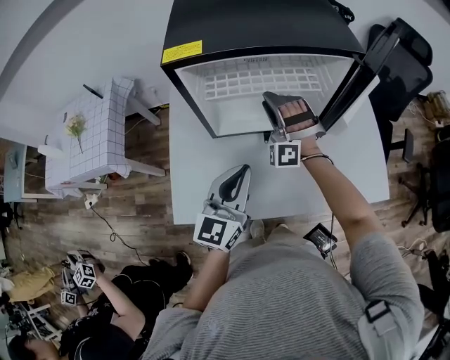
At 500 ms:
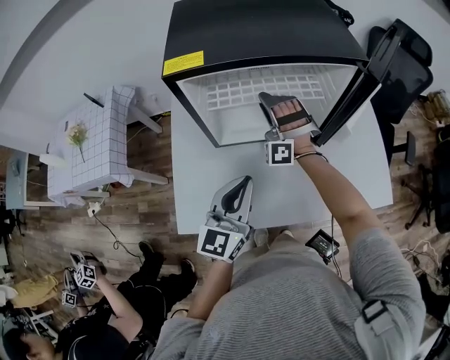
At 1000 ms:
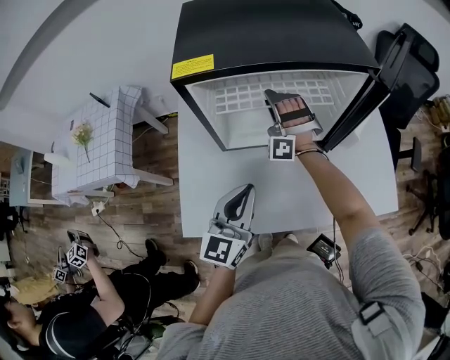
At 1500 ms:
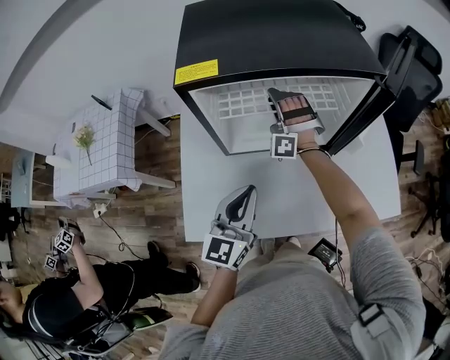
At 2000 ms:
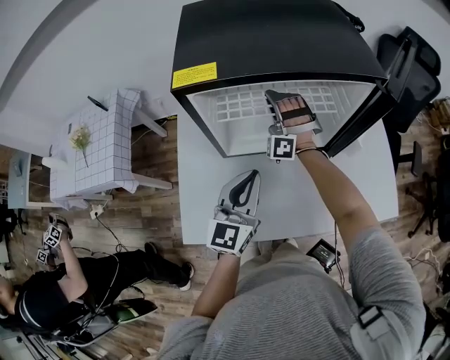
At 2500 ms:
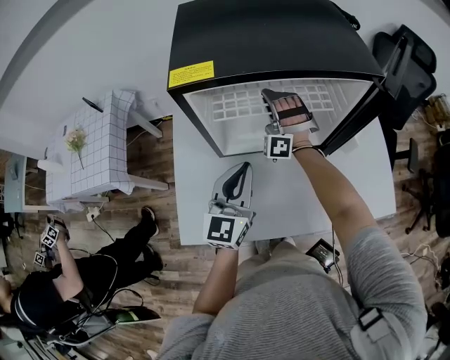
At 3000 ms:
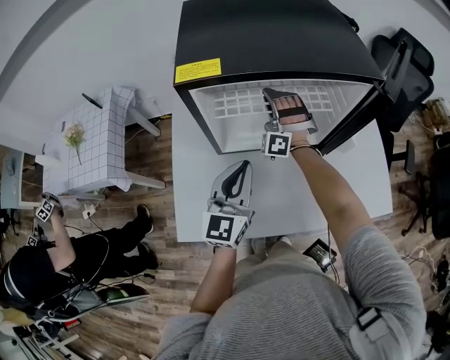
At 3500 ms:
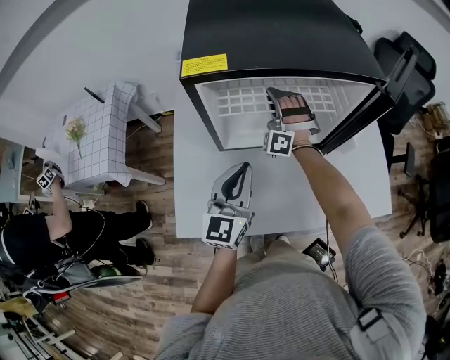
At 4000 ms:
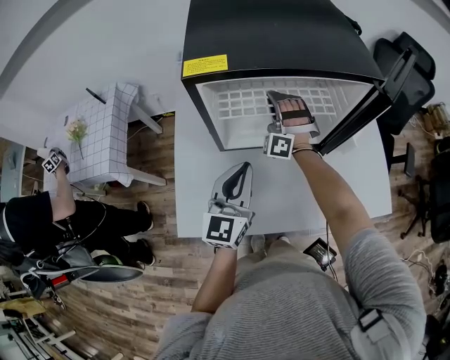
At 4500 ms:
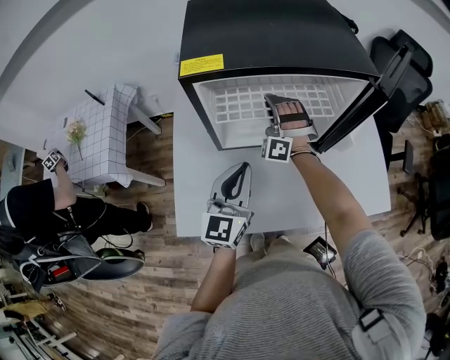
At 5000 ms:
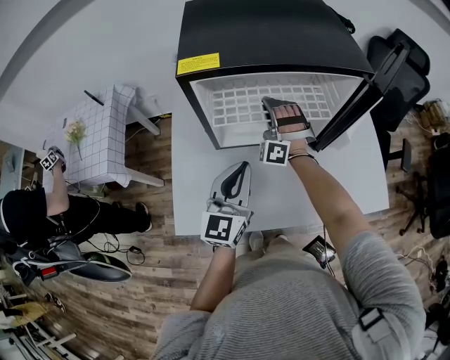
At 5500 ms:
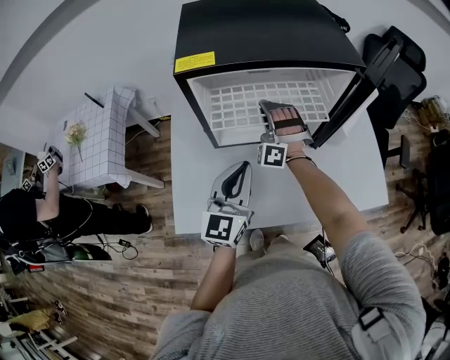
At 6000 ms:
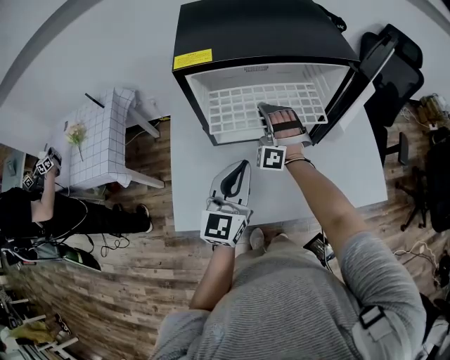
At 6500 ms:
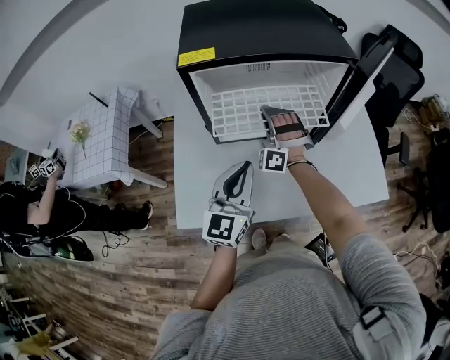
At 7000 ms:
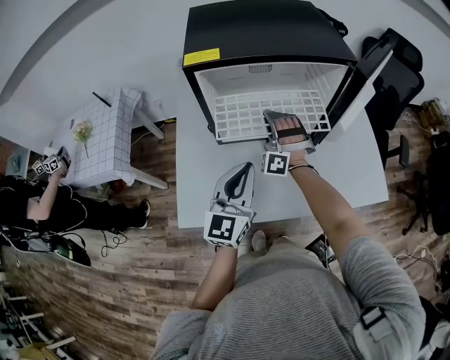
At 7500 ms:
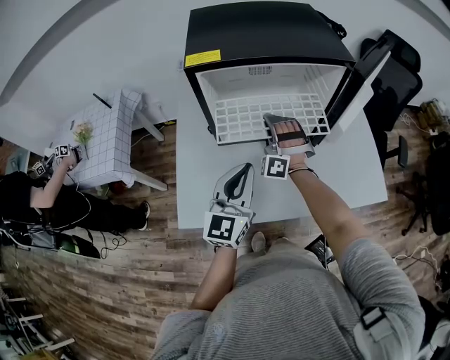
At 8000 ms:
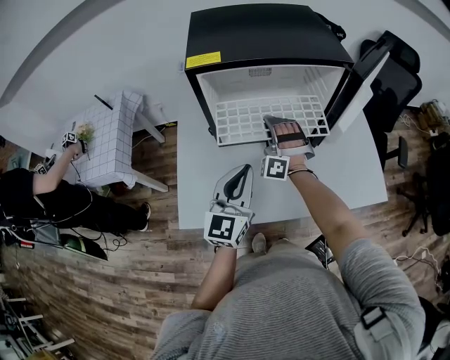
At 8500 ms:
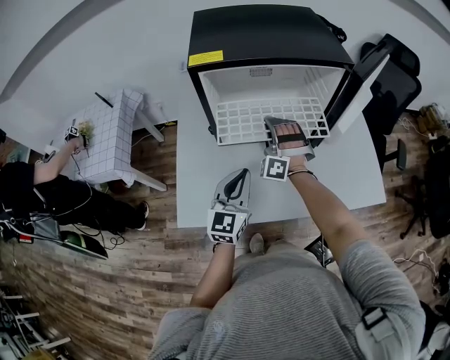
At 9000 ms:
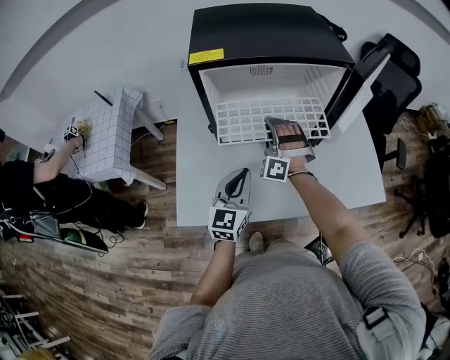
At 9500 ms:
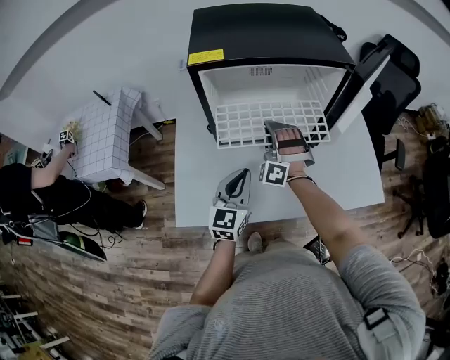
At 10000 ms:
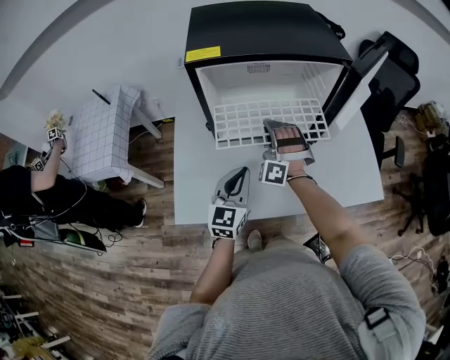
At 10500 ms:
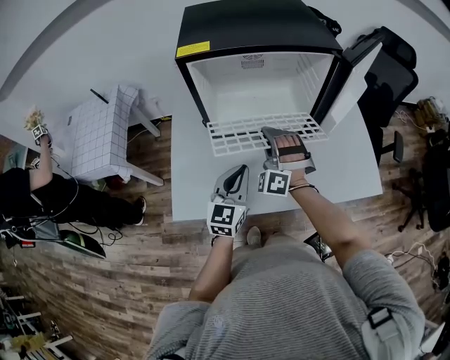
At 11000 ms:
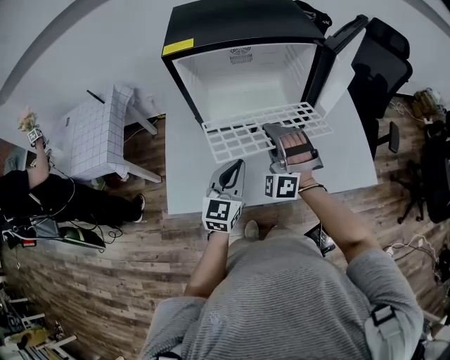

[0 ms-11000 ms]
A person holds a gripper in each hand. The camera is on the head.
0 ms to 2000 ms: The right gripper moves forward, approximately 10 cm, and closes its fingers. Meanwhile the left gripper travels forward by about 5 cm.
2000 ms to 3500 ms: There are only small adjustments of the grippers.
3500 ms to 5500 ms: The right gripper moves backward, approximately 5 cm.
5500 ms to 7500 ms: The right gripper travels backward by some 5 cm.
7500 ms to 9000 ms: The left gripper shifts about 10 cm downward.
9000 ms to 11000 ms: The right gripper is displaced backward, to the right and upward by about 15 cm. Meanwhile the left gripper ends up some 5 cm from where it was.

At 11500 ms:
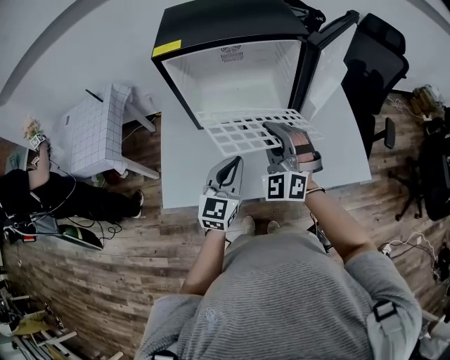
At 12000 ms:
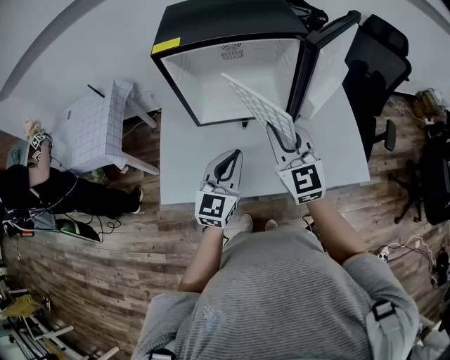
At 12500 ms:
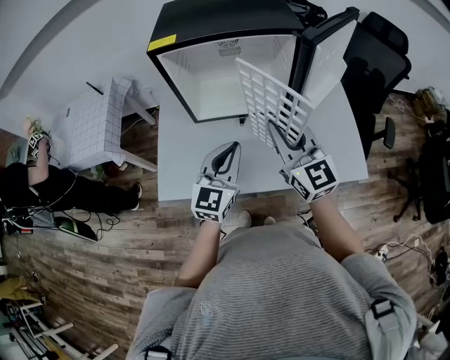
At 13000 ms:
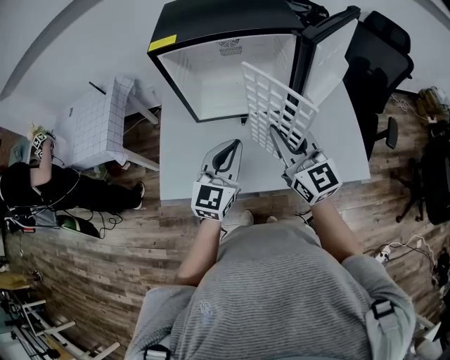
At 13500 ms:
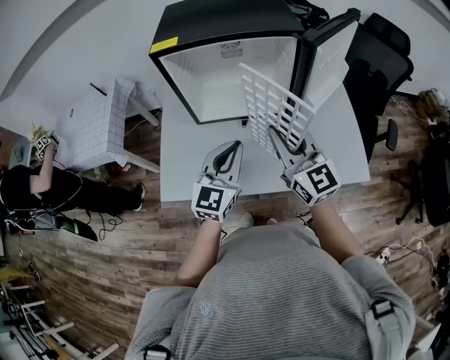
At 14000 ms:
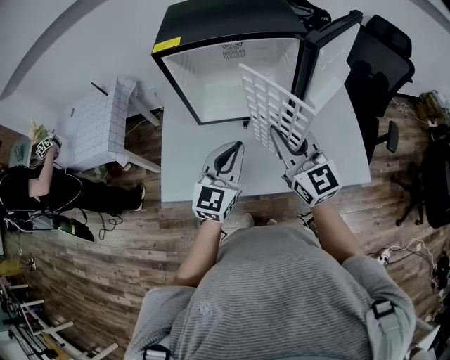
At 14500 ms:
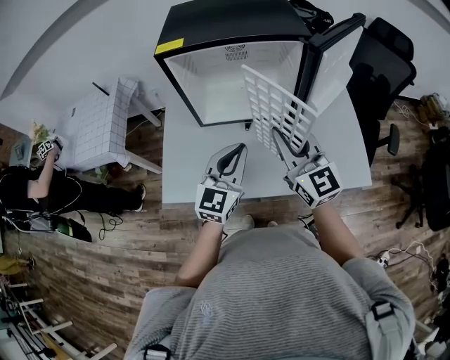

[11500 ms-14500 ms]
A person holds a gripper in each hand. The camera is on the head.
11500 ms to 13000 ms: The left gripper shifts some 5 cm upward, while the right gripper shifts by roughly 5 cm, and twists some 50 degrees clockwise, seen from behind.
13000 ms to 14500 ms: The grippers stay close to where they were, moving slightly.

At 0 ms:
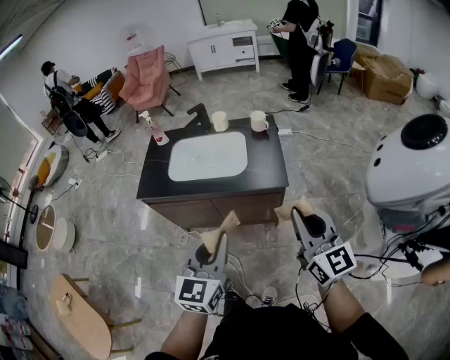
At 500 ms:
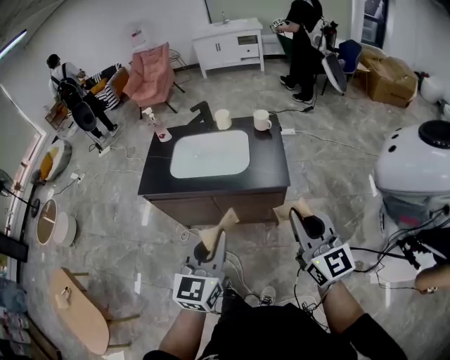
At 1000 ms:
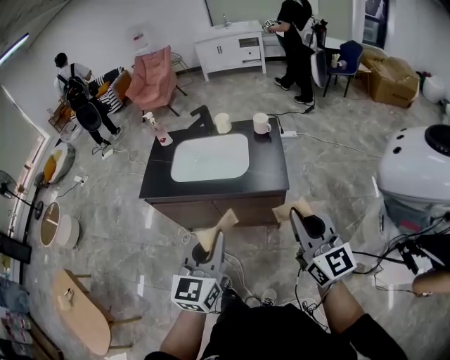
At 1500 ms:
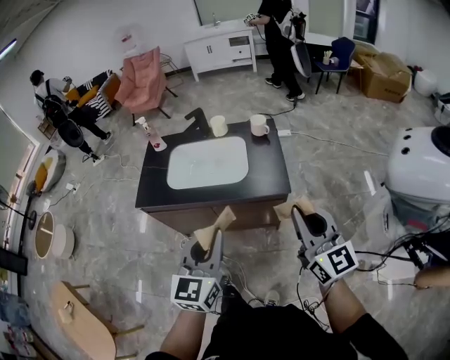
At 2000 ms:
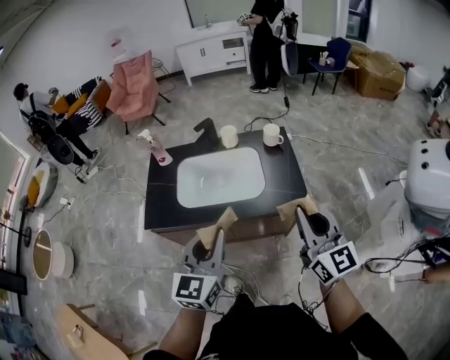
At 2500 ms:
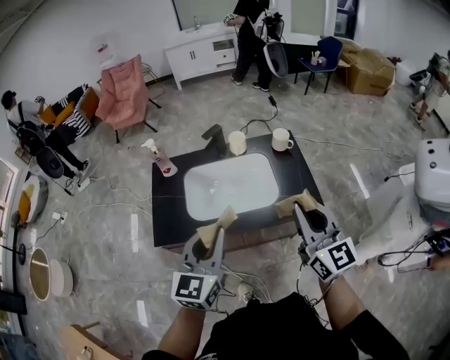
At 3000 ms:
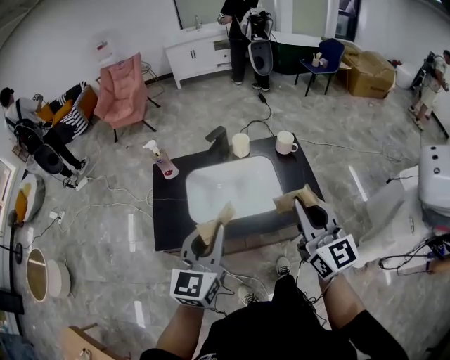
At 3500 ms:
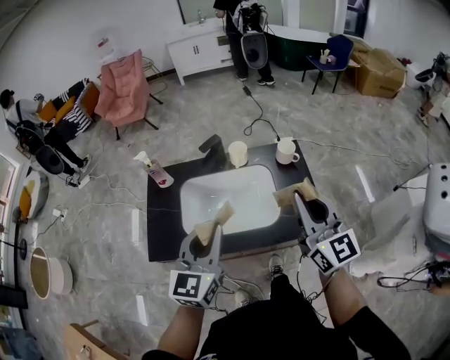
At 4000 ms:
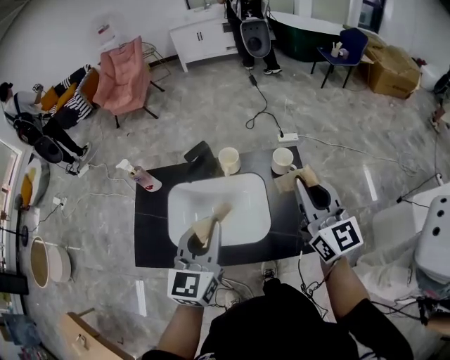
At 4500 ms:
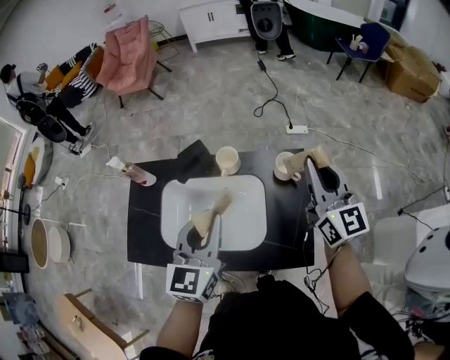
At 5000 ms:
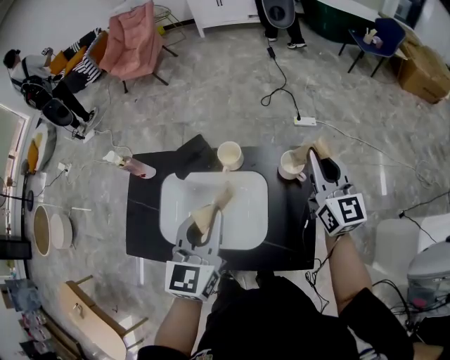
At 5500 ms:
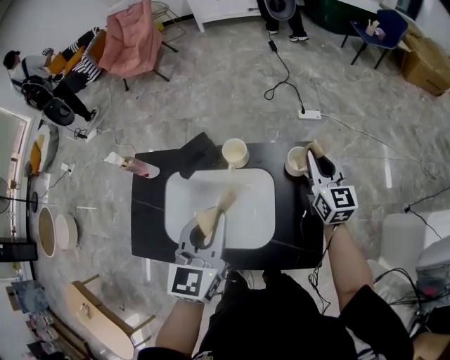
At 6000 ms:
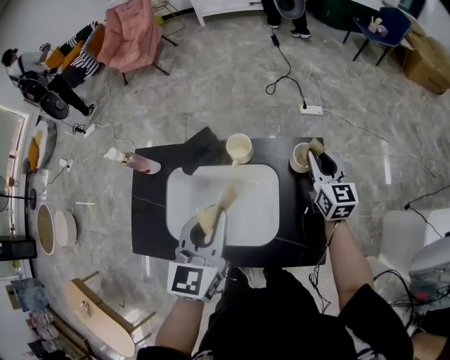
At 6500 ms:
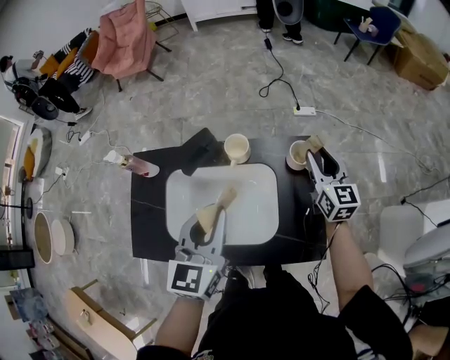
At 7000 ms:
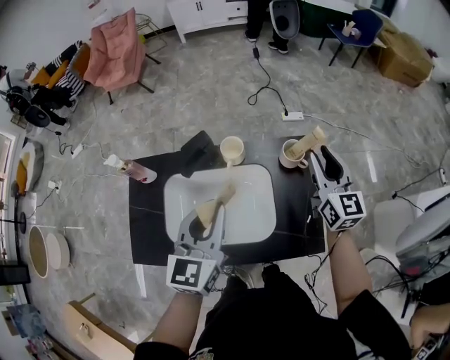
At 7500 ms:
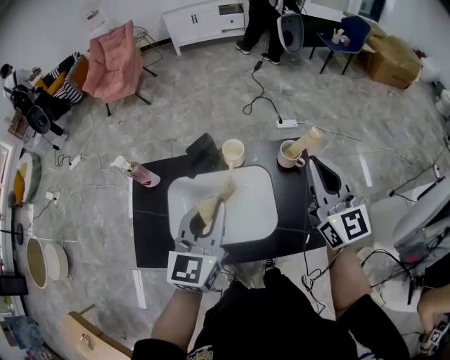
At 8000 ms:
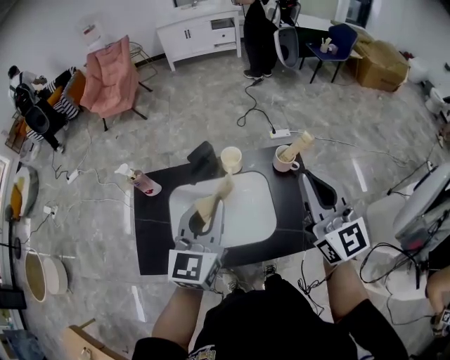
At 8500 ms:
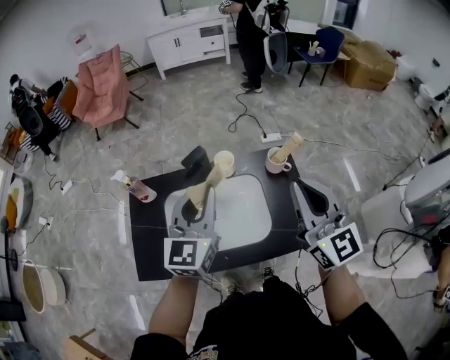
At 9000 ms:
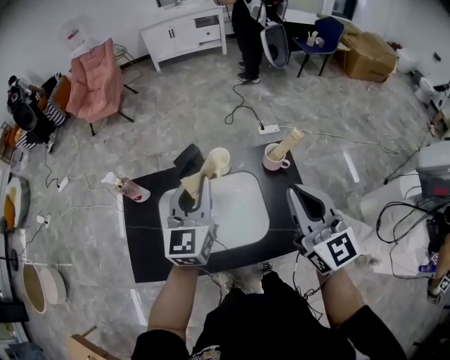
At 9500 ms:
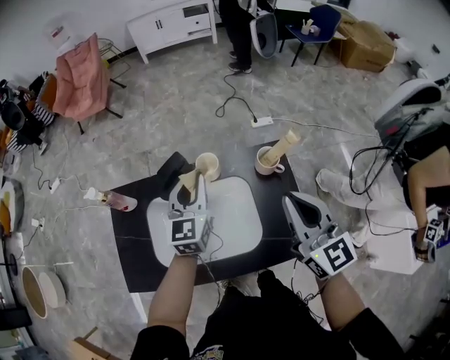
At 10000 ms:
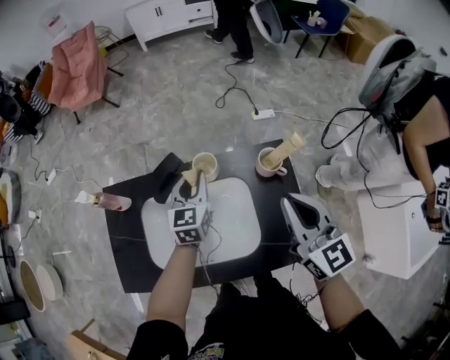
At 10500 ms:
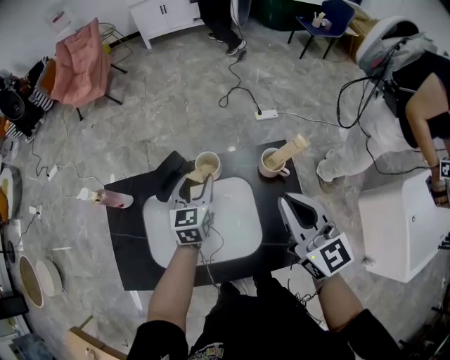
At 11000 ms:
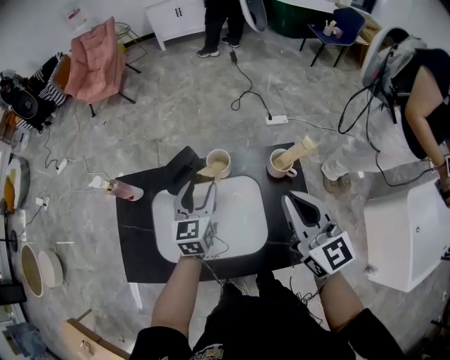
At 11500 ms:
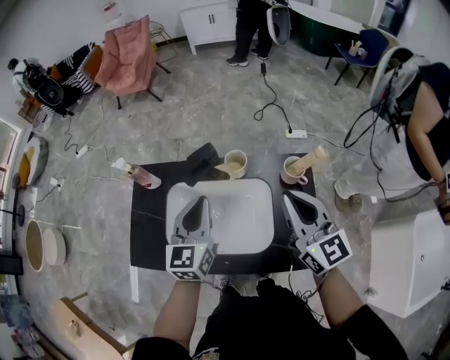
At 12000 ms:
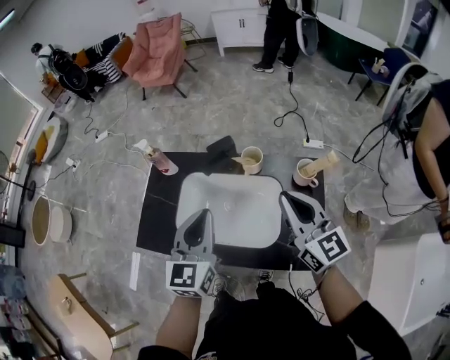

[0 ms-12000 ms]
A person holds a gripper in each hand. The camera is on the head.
0 ms to 2000 ms: The two grippers go roughly 20 cm forward and to the left.
2000 ms to 4000 ms: The two grippers go some 30 cm forward.
4000 ms to 6000 ms: The left gripper goes some 10 cm forward and downward. Meanwhile the right gripper moves downward and forward, approximately 30 cm, and swivels some 20 degrees.
6000 ms to 8000 ms: The right gripper goes some 35 cm upward and backward, turns by approximately 30 degrees, and closes up. The left gripper travels upward by some 10 cm.
8000 ms to 10000 ms: The right gripper travels downward and forward by approximately 15 cm, while the left gripper moves forward and downward, some 30 cm.
10000 ms to 12000 ms: The right gripper shifts about 5 cm to the left, and rotates some 20 degrees, while the left gripper travels backward, upward and to the left by some 30 cm, and opens, then closes once more.

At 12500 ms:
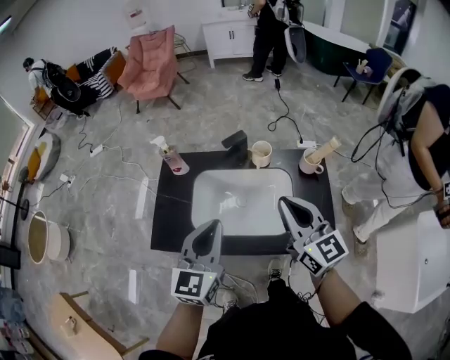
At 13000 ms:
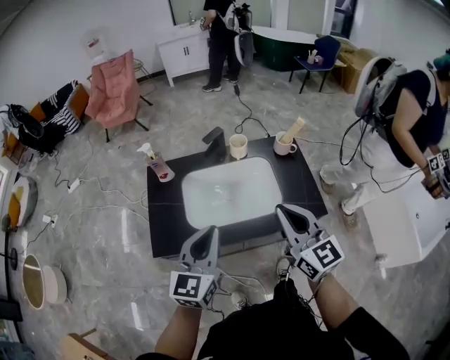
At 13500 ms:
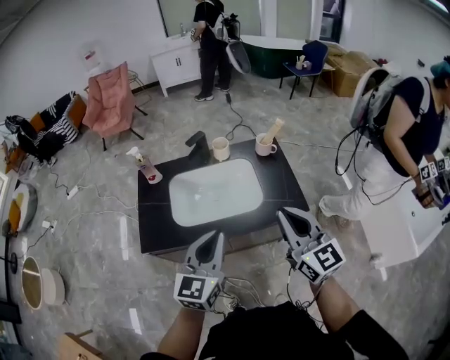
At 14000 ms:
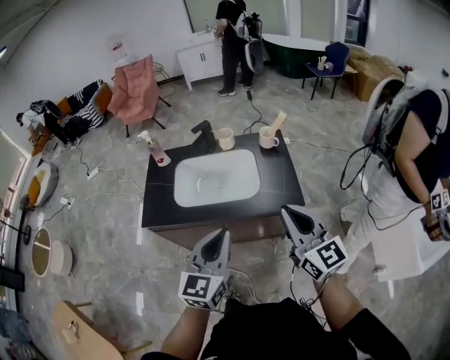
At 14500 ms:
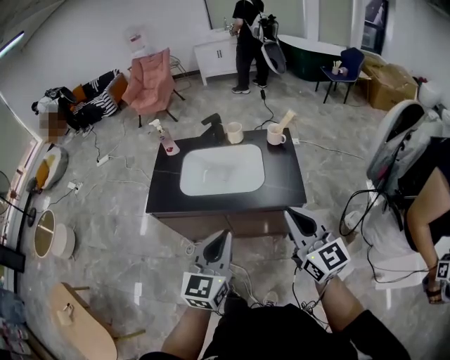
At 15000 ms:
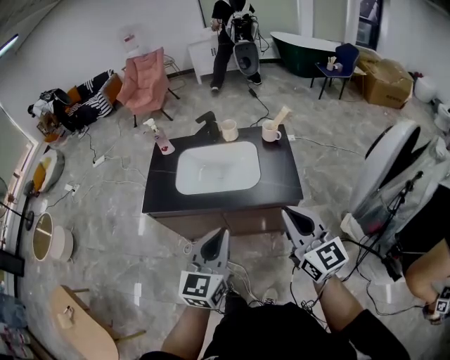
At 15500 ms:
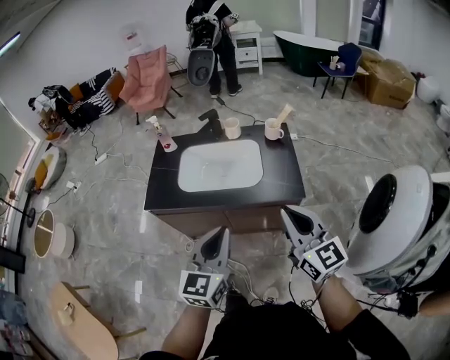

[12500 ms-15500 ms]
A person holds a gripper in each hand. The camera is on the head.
12500 ms to 14000 ms: Both grippers travel together backward and to the right, approximately 30 cm.
14000 ms to 15500 ms: The grippers move only a little.
